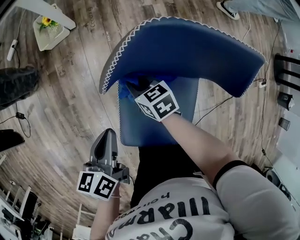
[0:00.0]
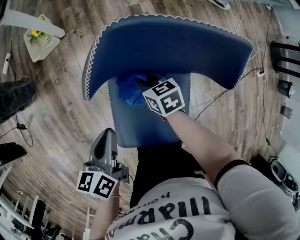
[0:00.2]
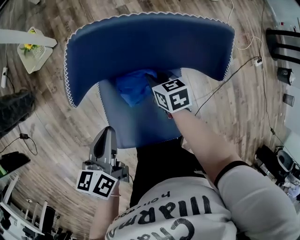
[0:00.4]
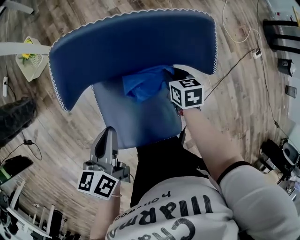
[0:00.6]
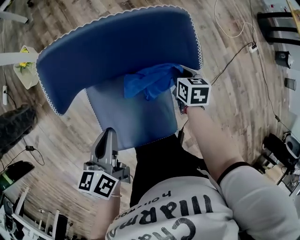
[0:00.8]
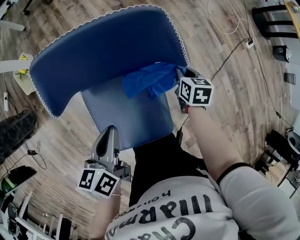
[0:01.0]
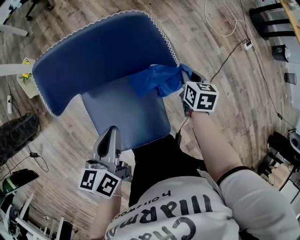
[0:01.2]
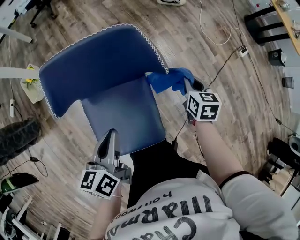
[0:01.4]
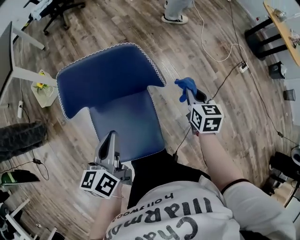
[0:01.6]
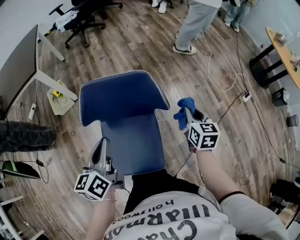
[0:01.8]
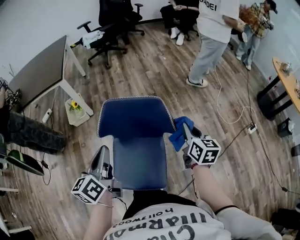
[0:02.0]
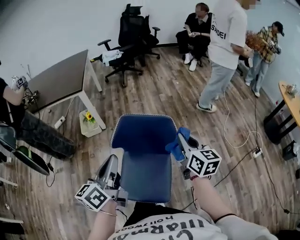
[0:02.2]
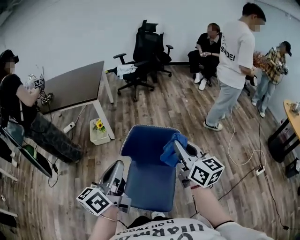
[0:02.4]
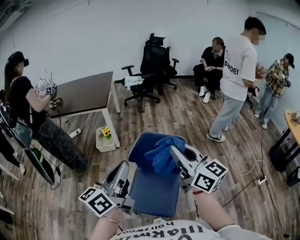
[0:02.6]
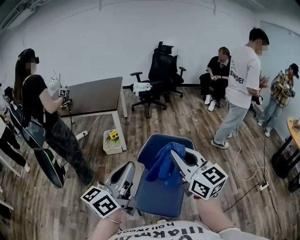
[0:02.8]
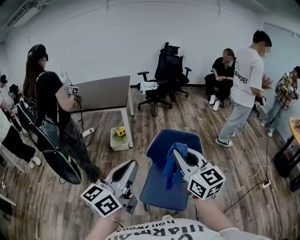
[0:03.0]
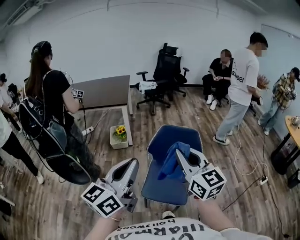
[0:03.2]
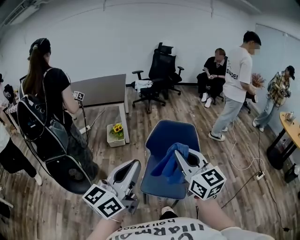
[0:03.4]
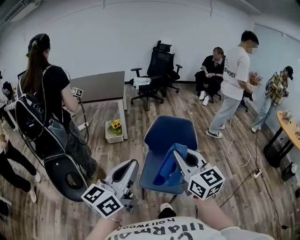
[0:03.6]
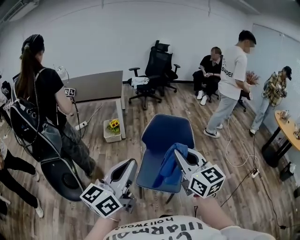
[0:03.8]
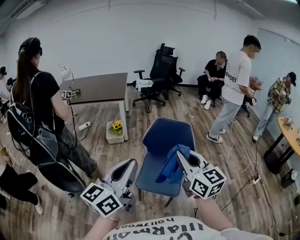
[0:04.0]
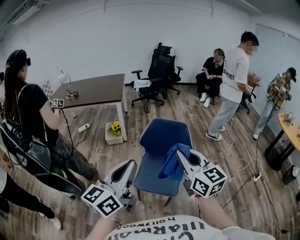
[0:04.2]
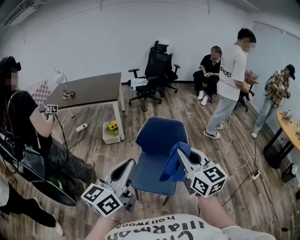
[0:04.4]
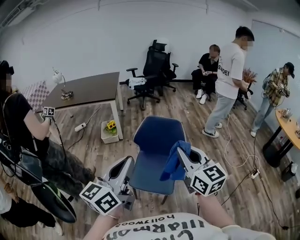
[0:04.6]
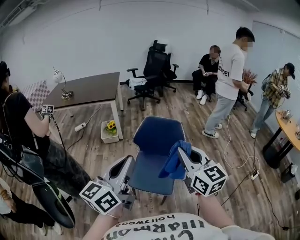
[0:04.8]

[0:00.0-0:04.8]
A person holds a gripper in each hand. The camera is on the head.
0:00.0 to 0:01.6: The left gripper changes place by approximately 25 cm, and swivels roughly 20 degrees. The right gripper ends up roughly 50 cm from where it was, and rotates approximately 50 degrees.
0:01.6 to 0:03.2: The left gripper is displaced upward by roughly 35 cm, and angles its fingers upward, by roughly 30 degrees. Meanwhile the right gripper moves approximately 60 cm, and tips its fingers upward by some 40 degrees.
0:03.2 to 0:04.8: Both grippers move to the right and backward, roughly 10 cm.

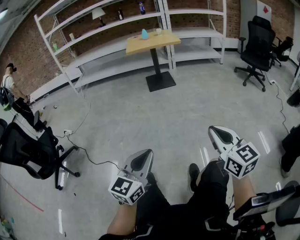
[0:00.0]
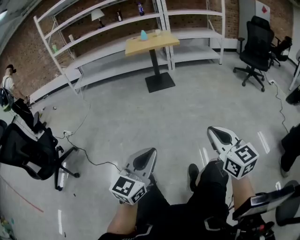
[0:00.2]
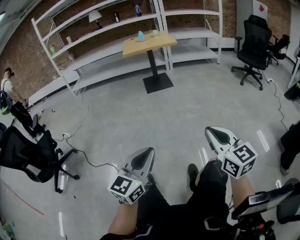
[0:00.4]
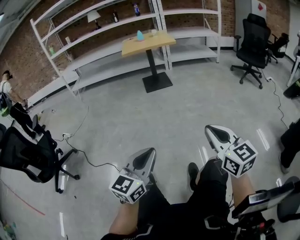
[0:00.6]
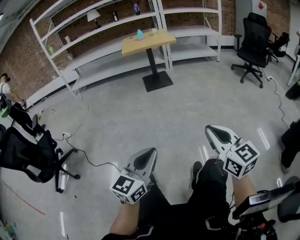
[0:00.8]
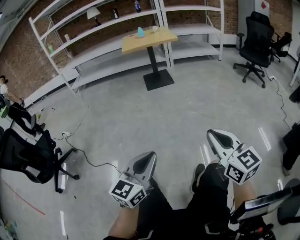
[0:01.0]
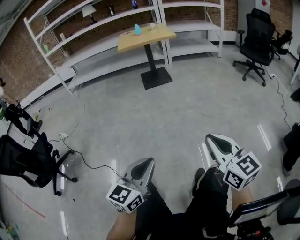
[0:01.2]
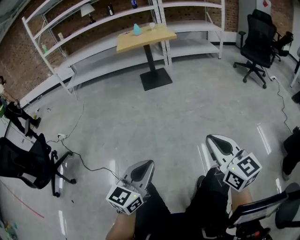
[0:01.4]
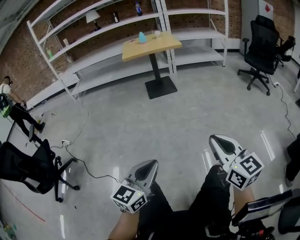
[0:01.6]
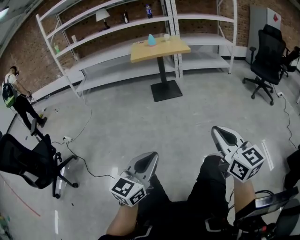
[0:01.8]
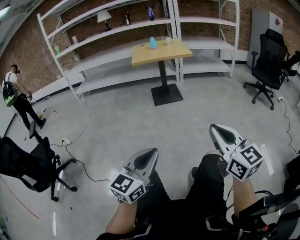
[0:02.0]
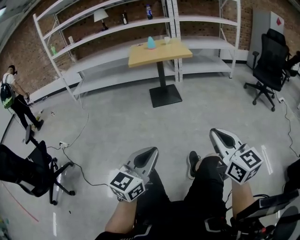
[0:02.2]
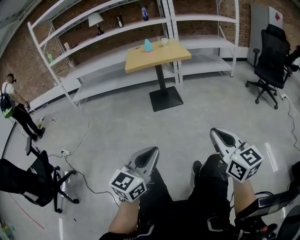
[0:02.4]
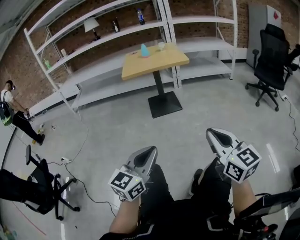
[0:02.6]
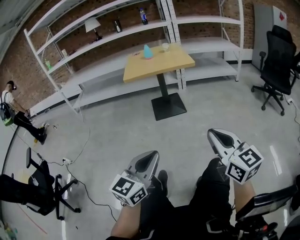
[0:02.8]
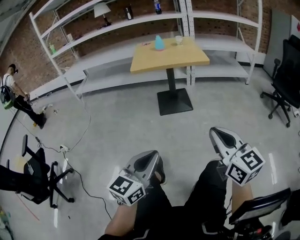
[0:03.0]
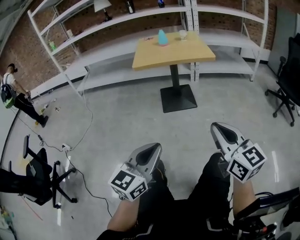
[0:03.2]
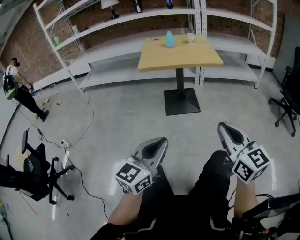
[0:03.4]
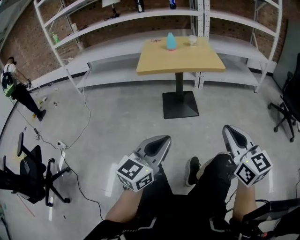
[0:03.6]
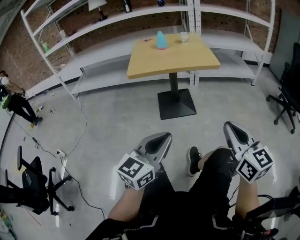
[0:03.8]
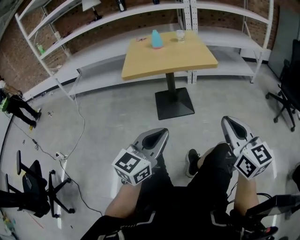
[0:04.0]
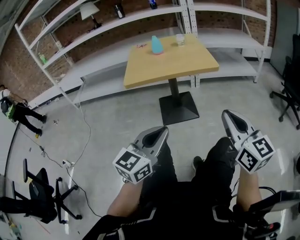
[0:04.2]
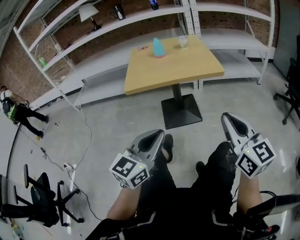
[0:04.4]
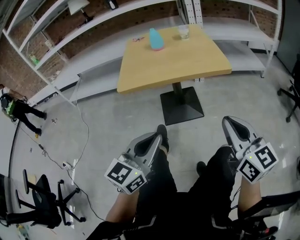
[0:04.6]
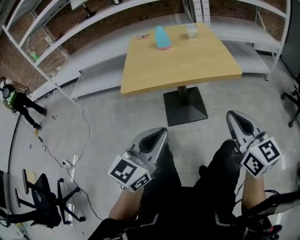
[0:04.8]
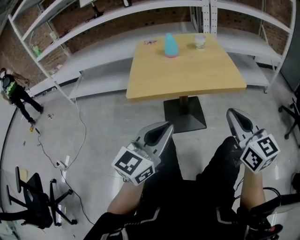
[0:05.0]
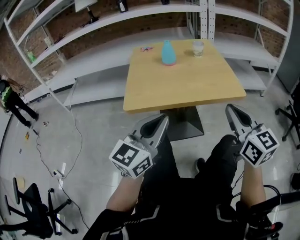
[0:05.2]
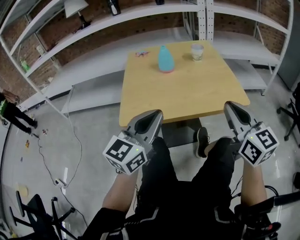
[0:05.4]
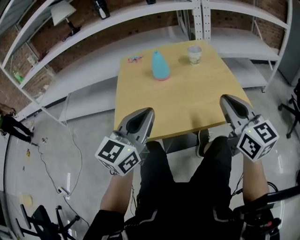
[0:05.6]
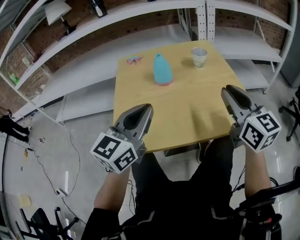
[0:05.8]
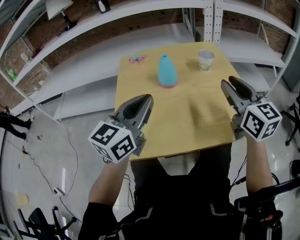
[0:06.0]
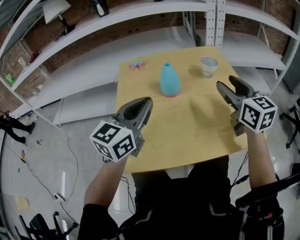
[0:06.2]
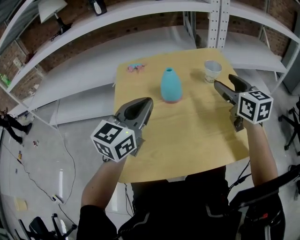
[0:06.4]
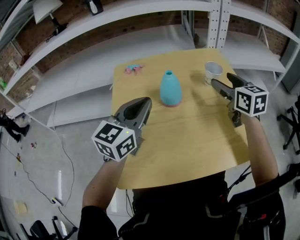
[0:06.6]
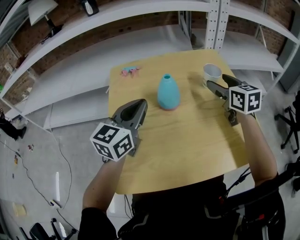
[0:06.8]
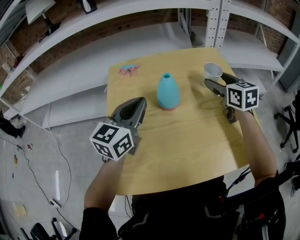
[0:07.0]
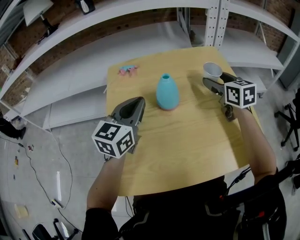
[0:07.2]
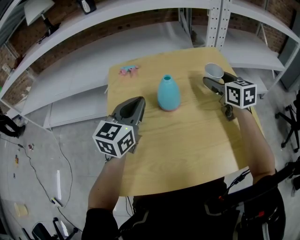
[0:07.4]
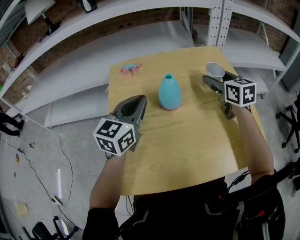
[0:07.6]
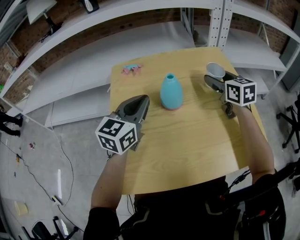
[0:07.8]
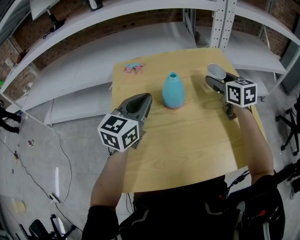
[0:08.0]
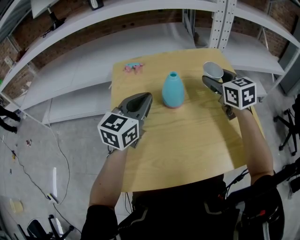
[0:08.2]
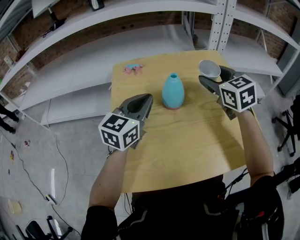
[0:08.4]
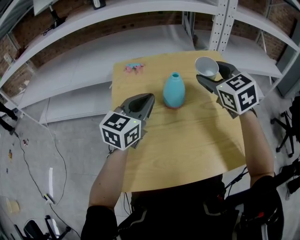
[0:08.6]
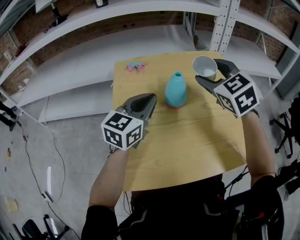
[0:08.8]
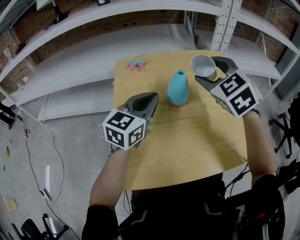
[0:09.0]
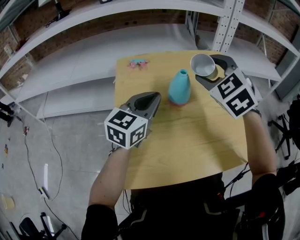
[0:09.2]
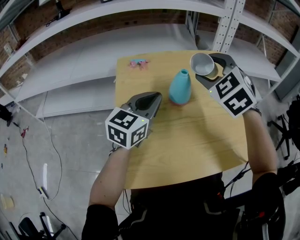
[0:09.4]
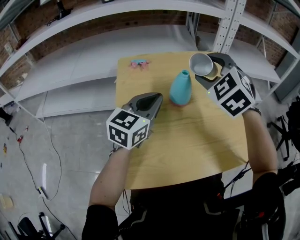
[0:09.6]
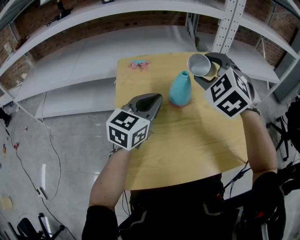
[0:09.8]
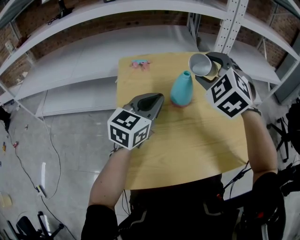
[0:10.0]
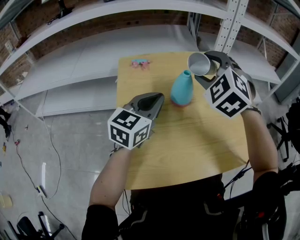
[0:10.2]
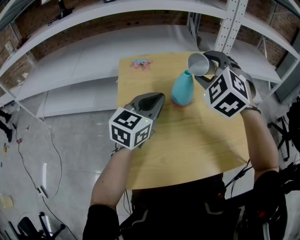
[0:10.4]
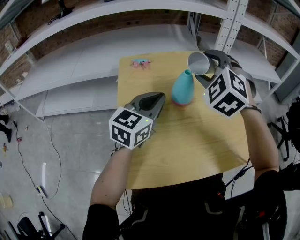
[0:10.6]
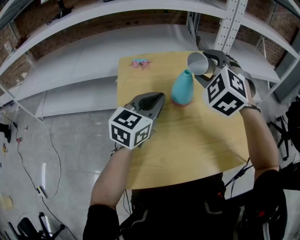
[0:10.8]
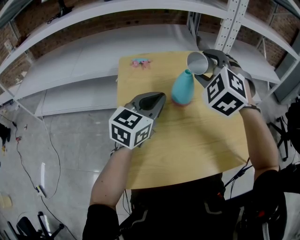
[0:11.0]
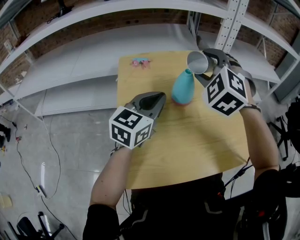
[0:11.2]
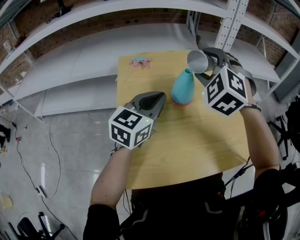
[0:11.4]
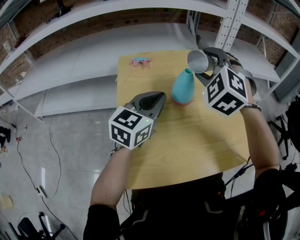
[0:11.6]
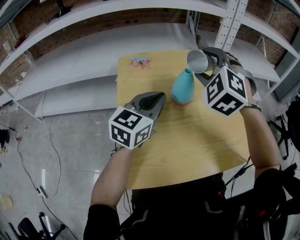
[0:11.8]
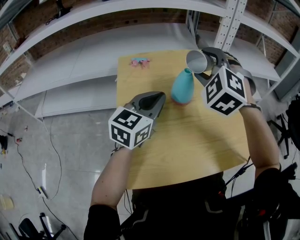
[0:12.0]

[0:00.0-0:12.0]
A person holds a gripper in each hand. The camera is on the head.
0:00.0 to 0:01.6: Both grippers travel together forward, roughly 10 cm.
0:01.6 to 0:03.0: Both grippers travel together forward, some 35 cm.
0:03.0 to 0:04.4: Both grippers travel together forward, approximately 30 cm.
0:04.4 to 0:06.0: The pair of grippers is taken forward, roughly 50 cm.
0:06.0 to 0:07.6: The right gripper heads forward and downward, covering approximately 25 cm, and opens its fingers; the left gripper travels forward by roughly 15 cm.
0:07.6 to 0:09.0: The right gripper is displaced to the left, upward and backward by roughly 15 cm, and rolls counterclockwise, seen from behind, by about 40 degrees.
0:09.0 to 0:10.4: The right gripper changes its angle by roughly 20 degrees.
0:10.4 to 0:12.0: The grippers make only small movements.

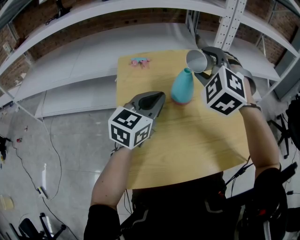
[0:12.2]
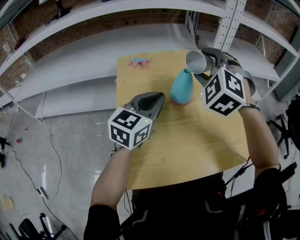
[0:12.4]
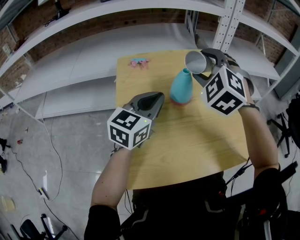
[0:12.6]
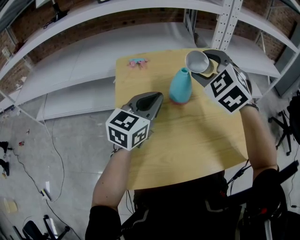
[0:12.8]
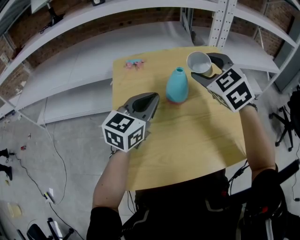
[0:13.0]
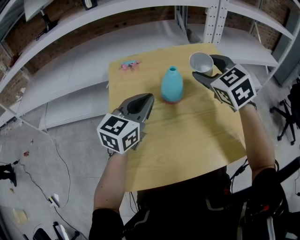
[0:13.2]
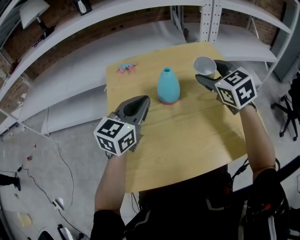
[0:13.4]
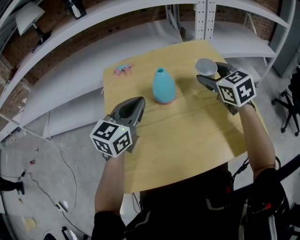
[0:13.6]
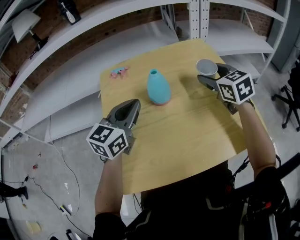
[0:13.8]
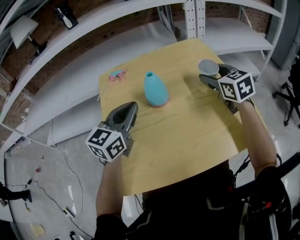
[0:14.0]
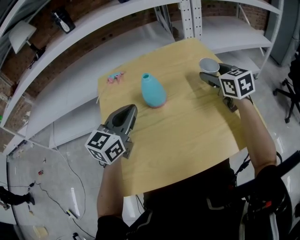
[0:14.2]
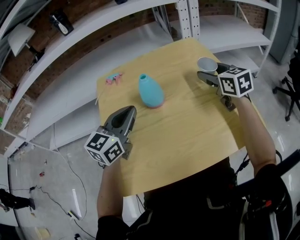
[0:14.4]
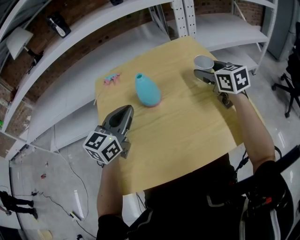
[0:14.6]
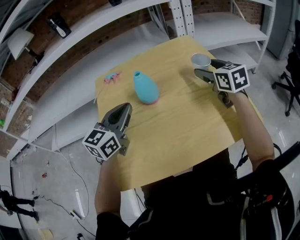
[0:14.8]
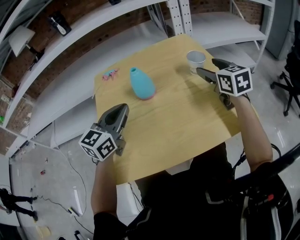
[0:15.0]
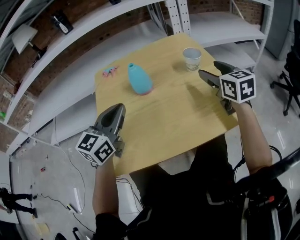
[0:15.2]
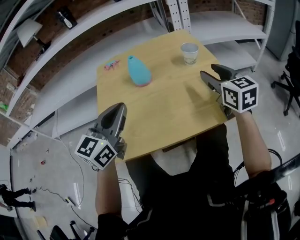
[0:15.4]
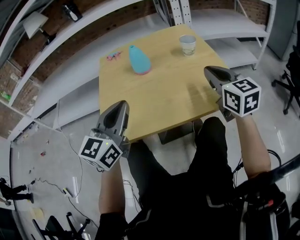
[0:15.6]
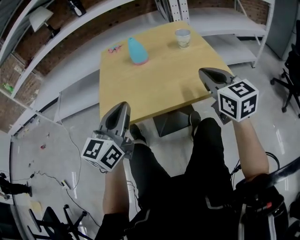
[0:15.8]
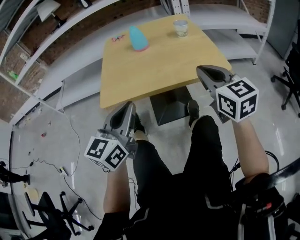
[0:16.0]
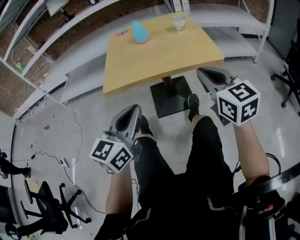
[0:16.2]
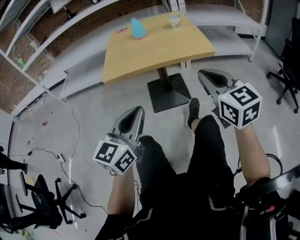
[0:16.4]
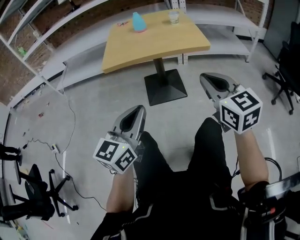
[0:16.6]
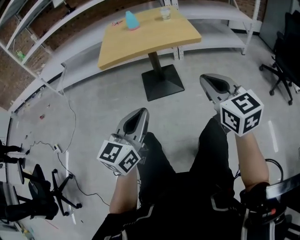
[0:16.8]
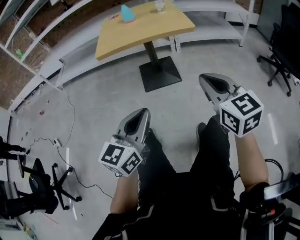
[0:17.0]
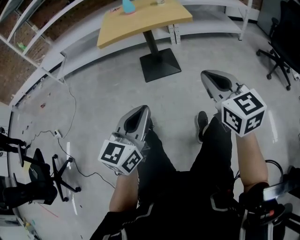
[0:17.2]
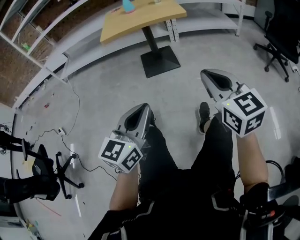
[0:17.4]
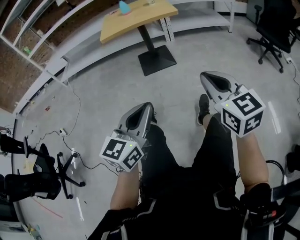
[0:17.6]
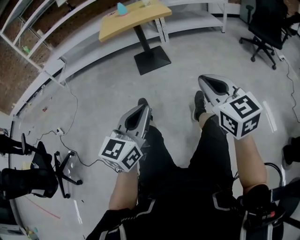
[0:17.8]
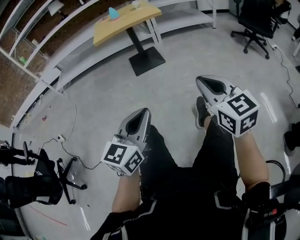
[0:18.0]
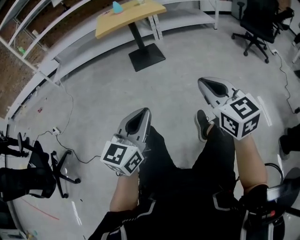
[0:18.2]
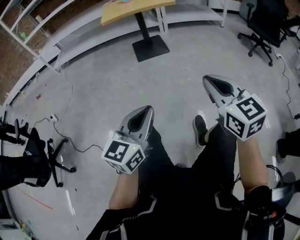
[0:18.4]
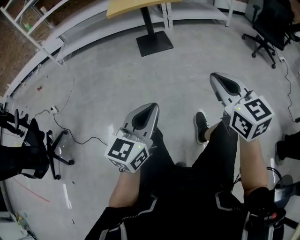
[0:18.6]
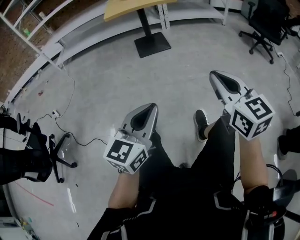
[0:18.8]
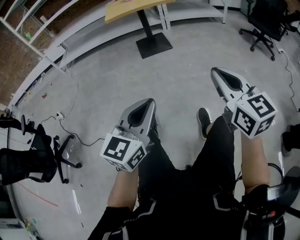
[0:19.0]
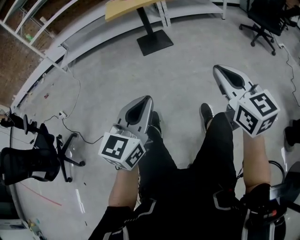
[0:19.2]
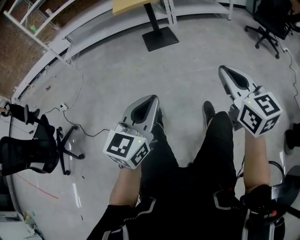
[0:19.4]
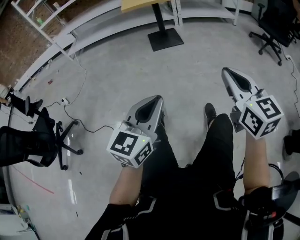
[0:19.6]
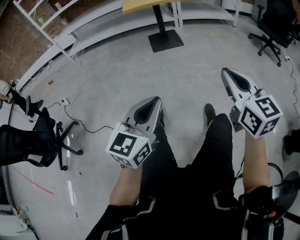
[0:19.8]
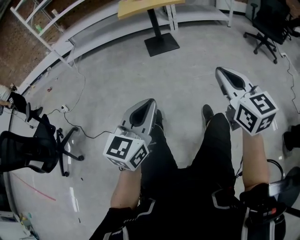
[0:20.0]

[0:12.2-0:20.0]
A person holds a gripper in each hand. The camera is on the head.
0:12.2 to 0:13.8: The right gripper travels to the right and downward by about 15 cm, and twists about 60 degrees clockwise, seen from behind.
0:13.8 to 0:15.4: The two grippers go roughly 15 cm backward and to the right.
0:15.4 to 0:16.8: Both grippers are carried backward, roughly 50 cm. The right gripper closes.
0:16.8 to 0:18.4: The pair of grippers is taken backward, some 50 cm.
0:18.4 to 0:20.0: The grippers both shift backward by about 10 cm.
